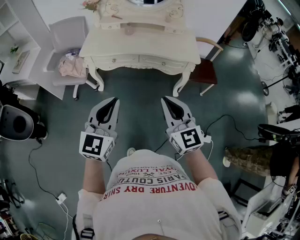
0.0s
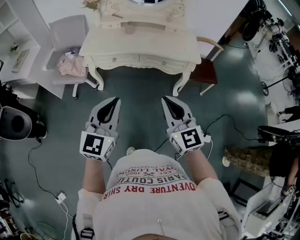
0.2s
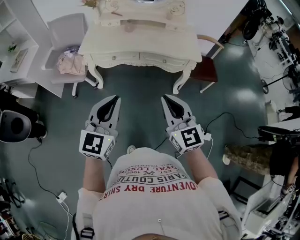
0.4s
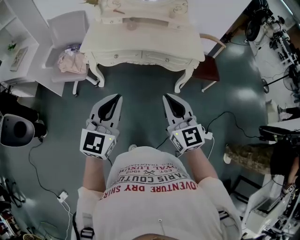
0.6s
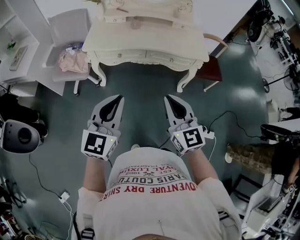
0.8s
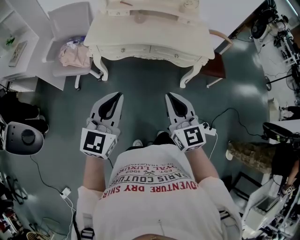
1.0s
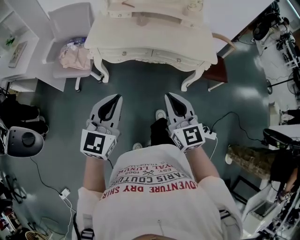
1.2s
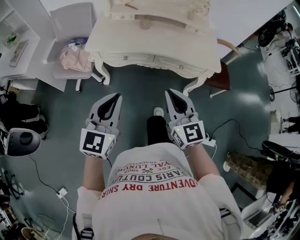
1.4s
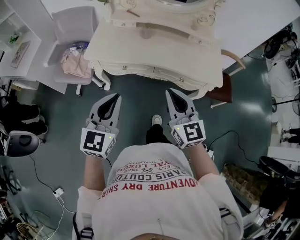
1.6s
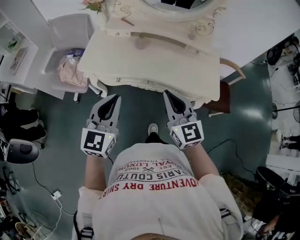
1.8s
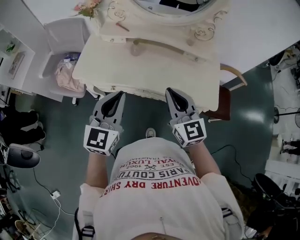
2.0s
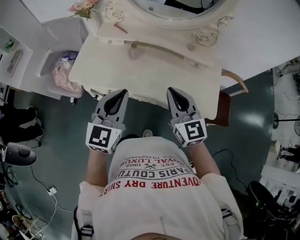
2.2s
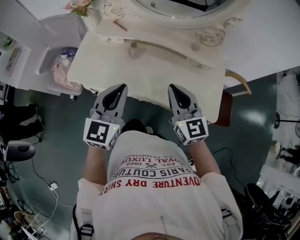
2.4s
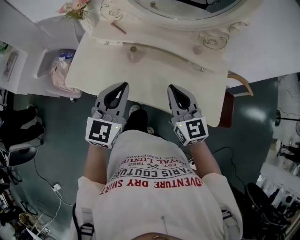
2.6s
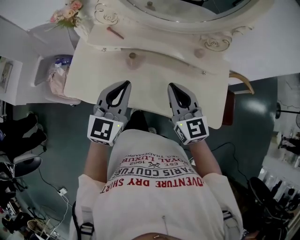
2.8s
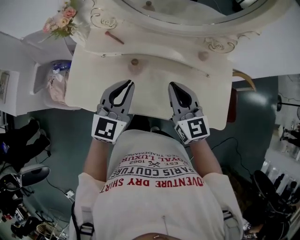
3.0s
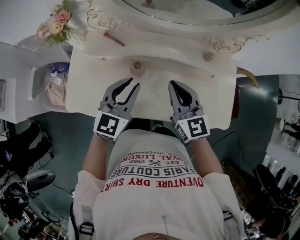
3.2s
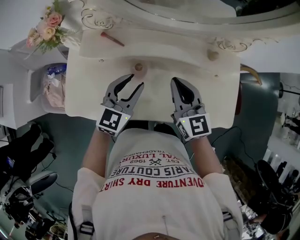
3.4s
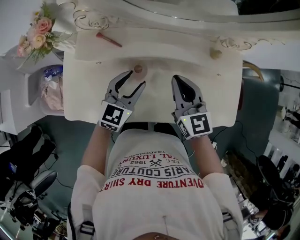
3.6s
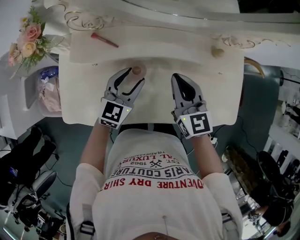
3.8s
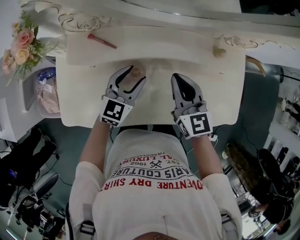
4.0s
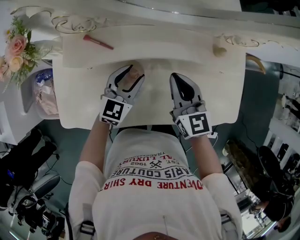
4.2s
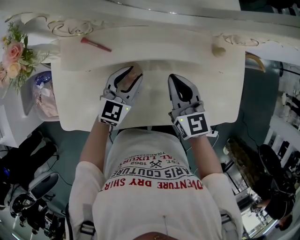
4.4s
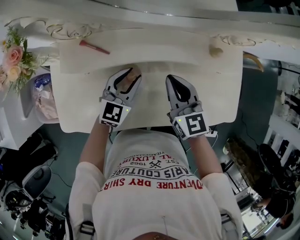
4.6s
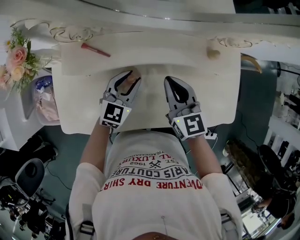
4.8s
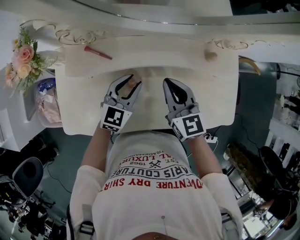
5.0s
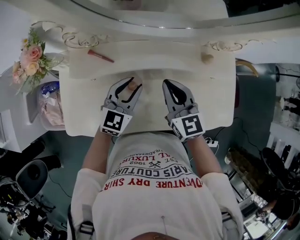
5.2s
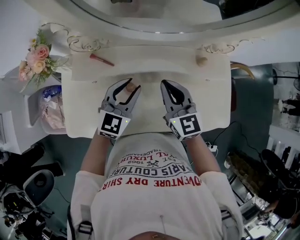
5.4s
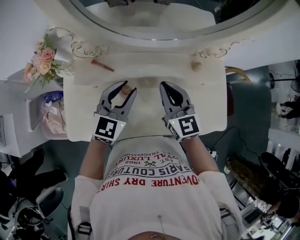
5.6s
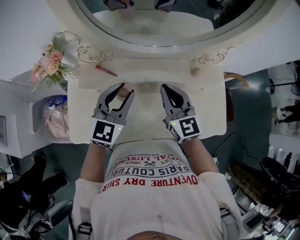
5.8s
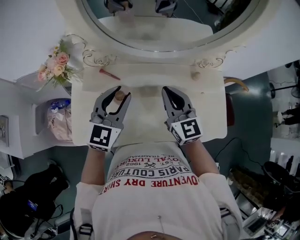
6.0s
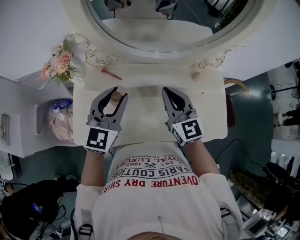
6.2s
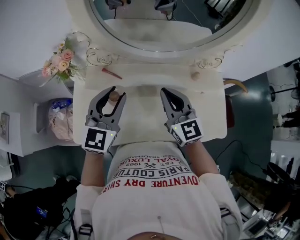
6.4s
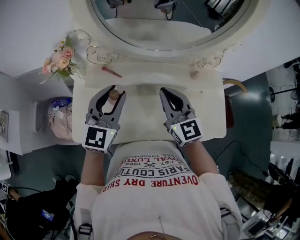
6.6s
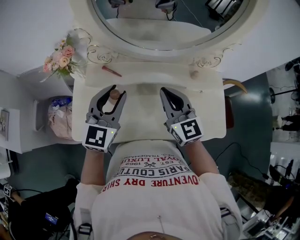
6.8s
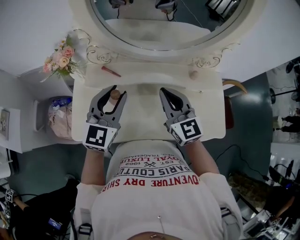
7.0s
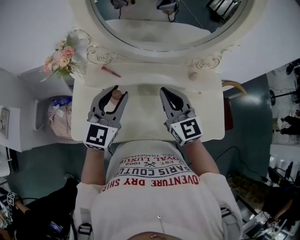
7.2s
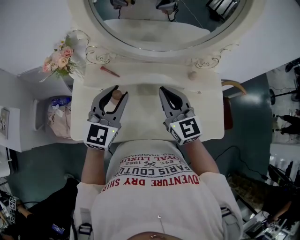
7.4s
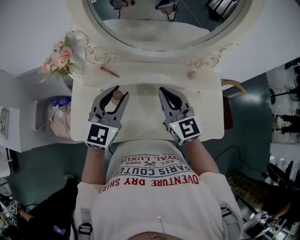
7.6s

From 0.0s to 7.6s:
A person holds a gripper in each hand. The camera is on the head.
From 0.0s to 1.6s: Both grippers travel together forward, approximately 25 cm.
From 1.6s to 3.0s: The two grippers travel together, forward, about 40 cm.
From 3.0s to 4.6s: The grippers both shift downward and forward by about 20 cm. The left gripper opens.
From 4.6s to 6.0s: The left gripper goes approximately 20 cm upward; the right gripper is displaced upward by about 15 cm.
From 6.0s to 7.6s: There are only small adjustments of the grippers.

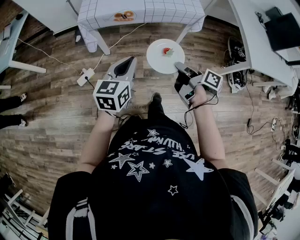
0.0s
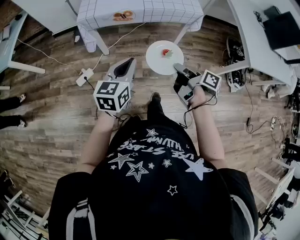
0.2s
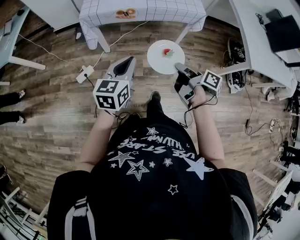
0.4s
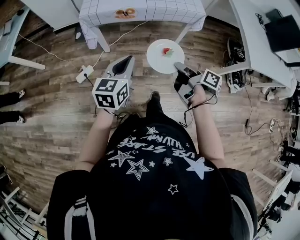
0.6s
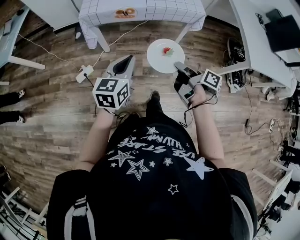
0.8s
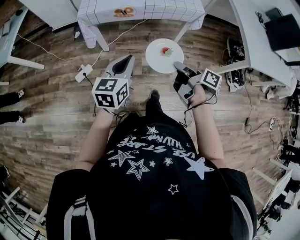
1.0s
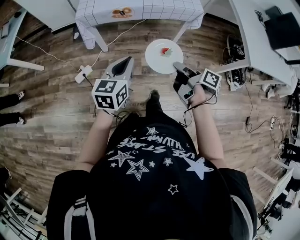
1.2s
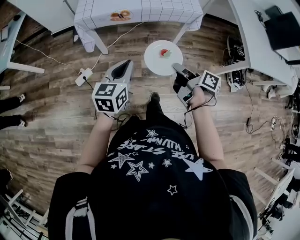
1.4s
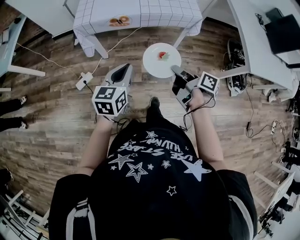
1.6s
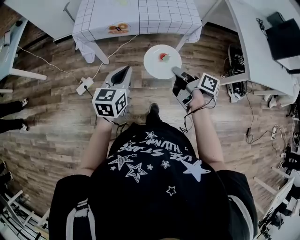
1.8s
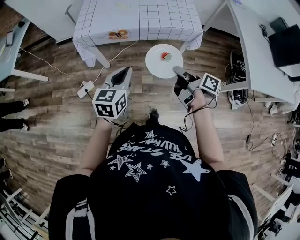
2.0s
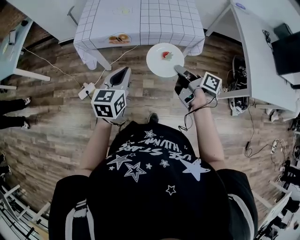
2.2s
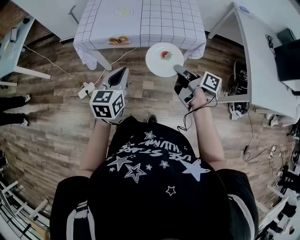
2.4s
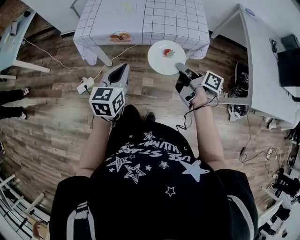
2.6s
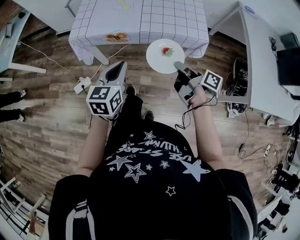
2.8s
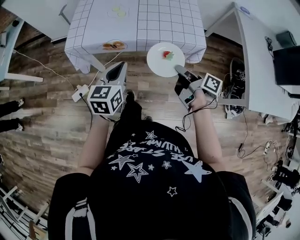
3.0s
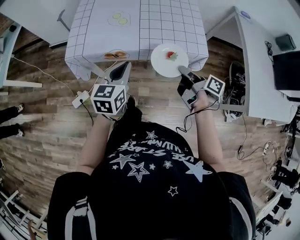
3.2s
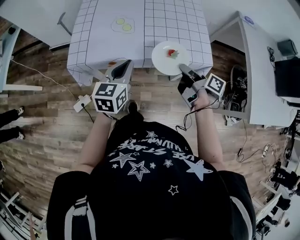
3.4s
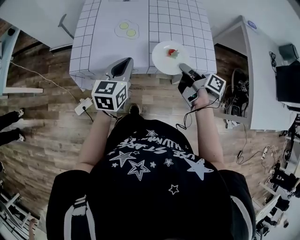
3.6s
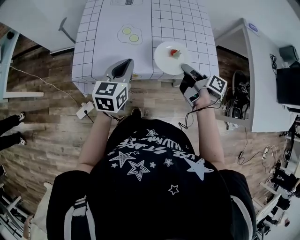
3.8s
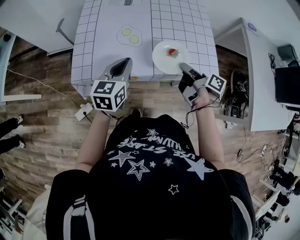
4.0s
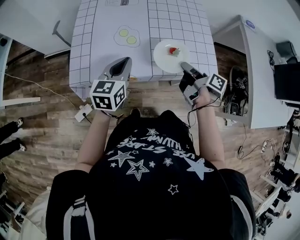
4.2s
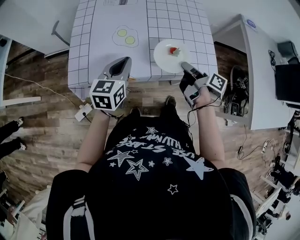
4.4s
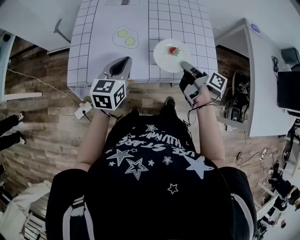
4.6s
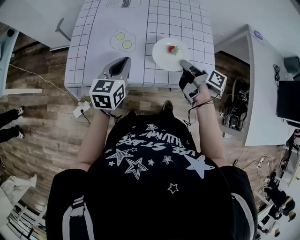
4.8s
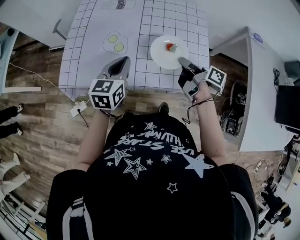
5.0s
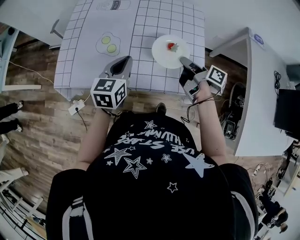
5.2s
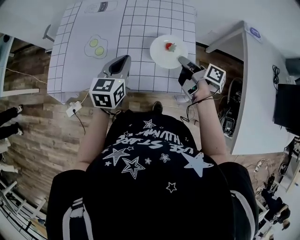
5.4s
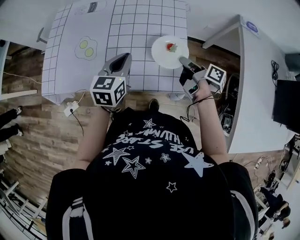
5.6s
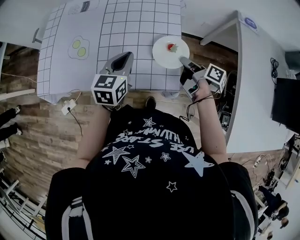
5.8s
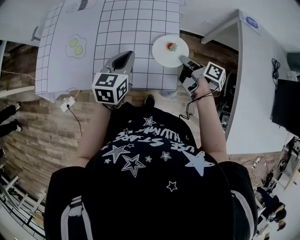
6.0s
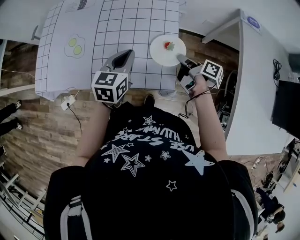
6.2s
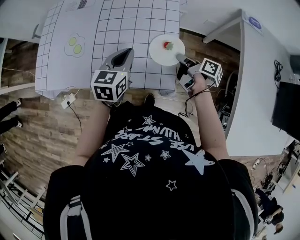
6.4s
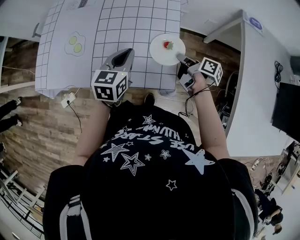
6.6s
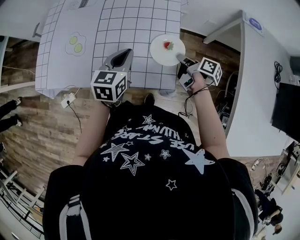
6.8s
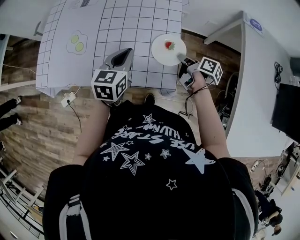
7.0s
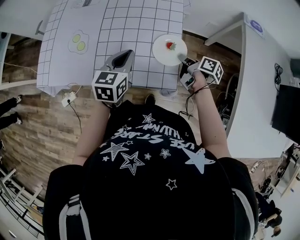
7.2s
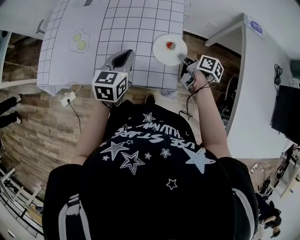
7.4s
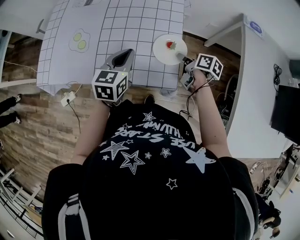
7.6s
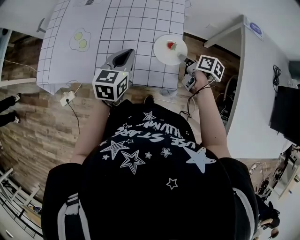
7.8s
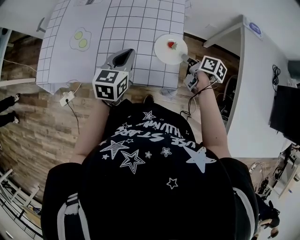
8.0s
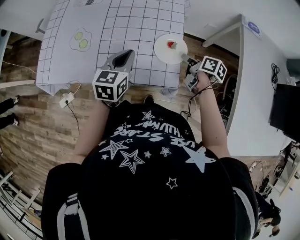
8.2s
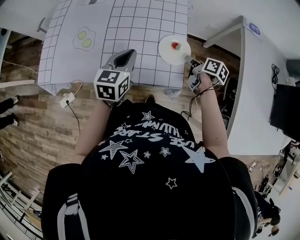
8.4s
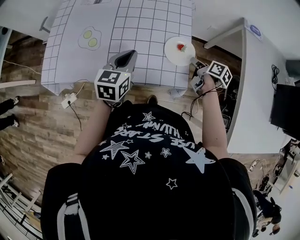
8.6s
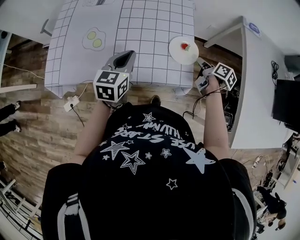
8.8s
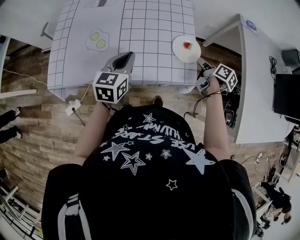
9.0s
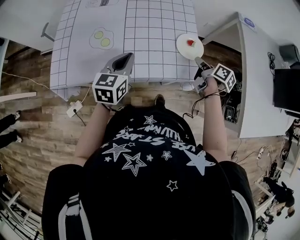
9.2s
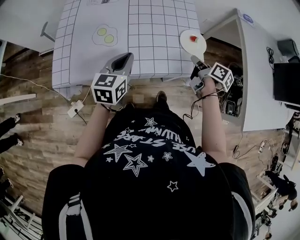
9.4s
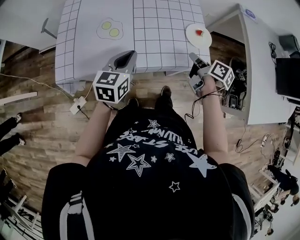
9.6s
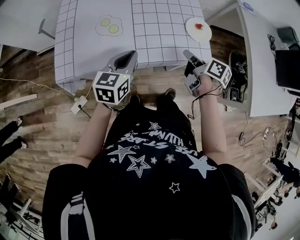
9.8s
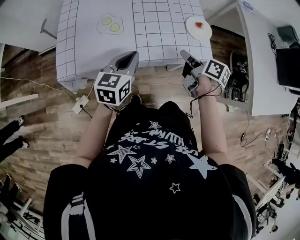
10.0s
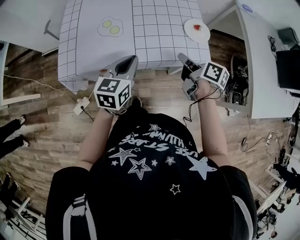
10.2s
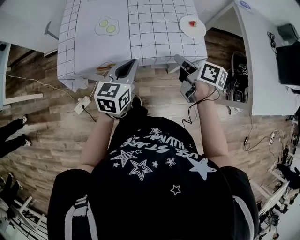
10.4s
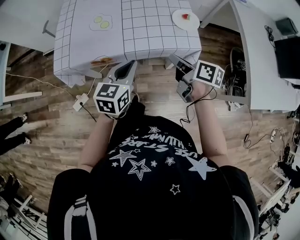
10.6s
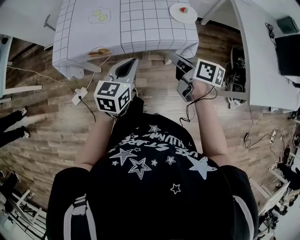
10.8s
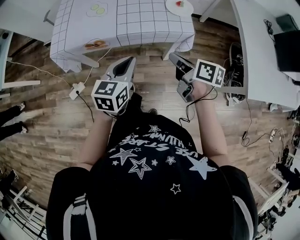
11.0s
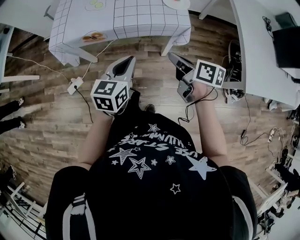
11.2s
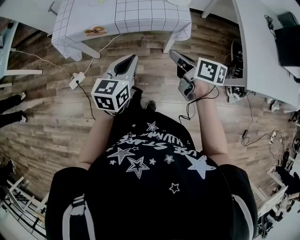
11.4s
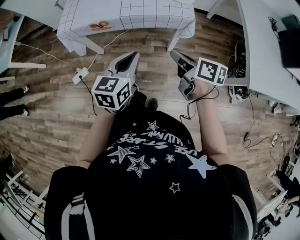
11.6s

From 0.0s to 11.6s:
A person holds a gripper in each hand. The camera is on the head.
From 1.4s to 2.8s: The left gripper ends up about 20 cm from where it was.
From 2.8s to 4.4s: The left gripper ends up about 25 cm from where it was.
From 4.4s to 5.8s: The left gripper ends up some 30 cm from where it was.
From 7.2s to 8.8s: The left gripper ends up about 10 cm from where it was.
From 8.8s to 10.2s: The left gripper moves about 15 cm.
From 10.2s to 11.6s: The left gripper changes place by approximately 25 cm.

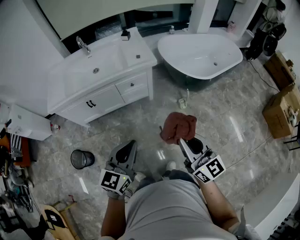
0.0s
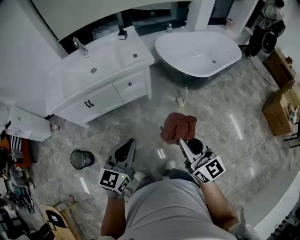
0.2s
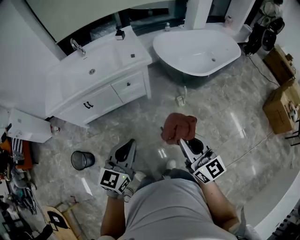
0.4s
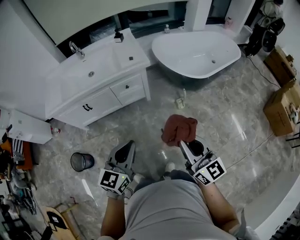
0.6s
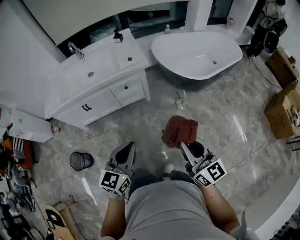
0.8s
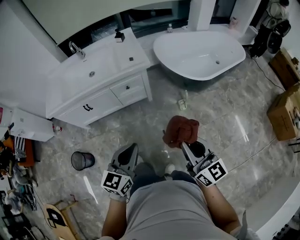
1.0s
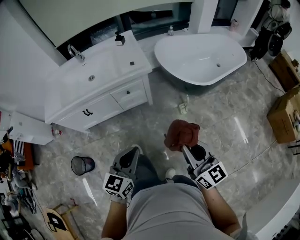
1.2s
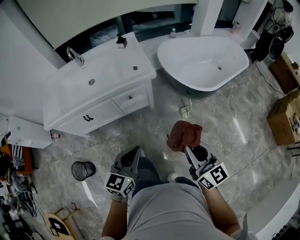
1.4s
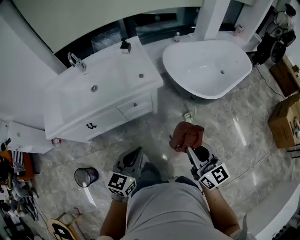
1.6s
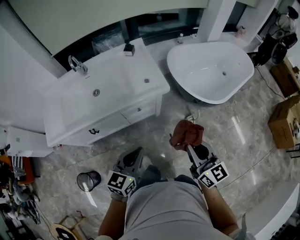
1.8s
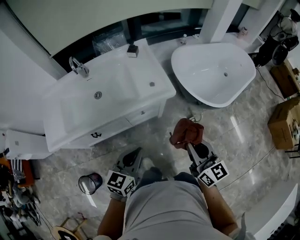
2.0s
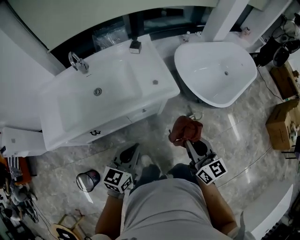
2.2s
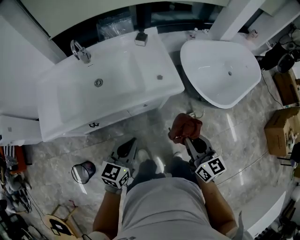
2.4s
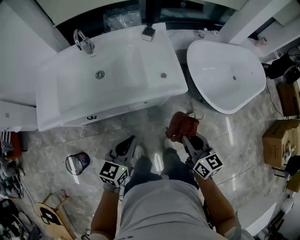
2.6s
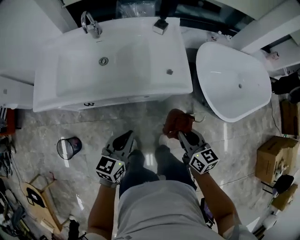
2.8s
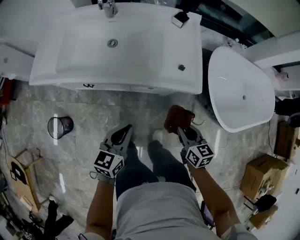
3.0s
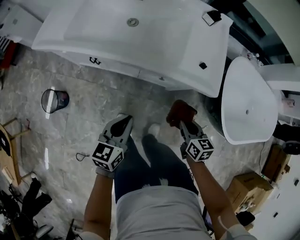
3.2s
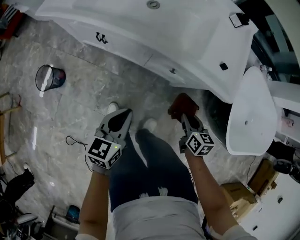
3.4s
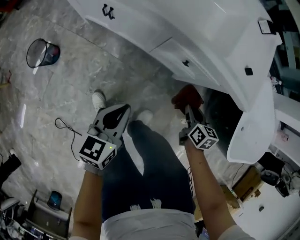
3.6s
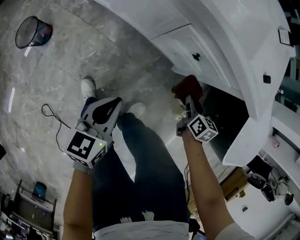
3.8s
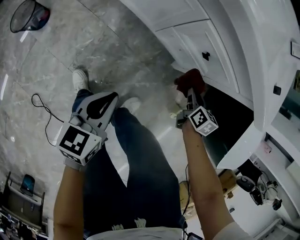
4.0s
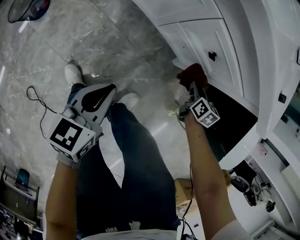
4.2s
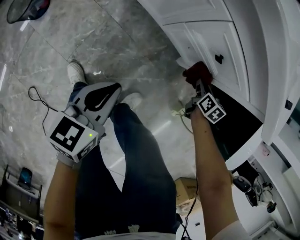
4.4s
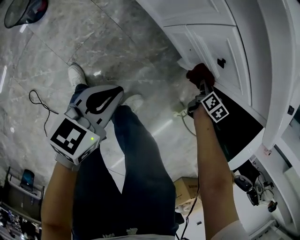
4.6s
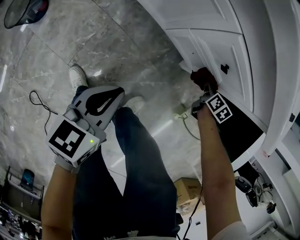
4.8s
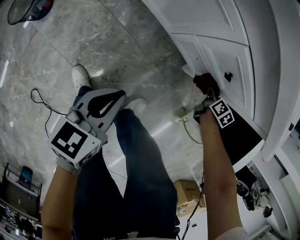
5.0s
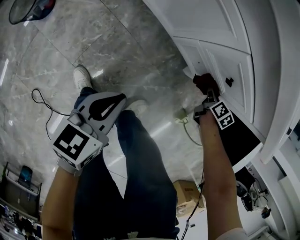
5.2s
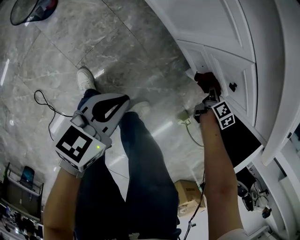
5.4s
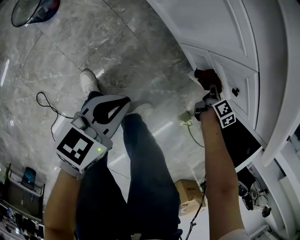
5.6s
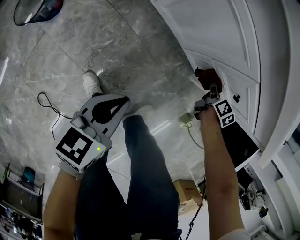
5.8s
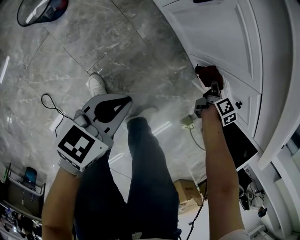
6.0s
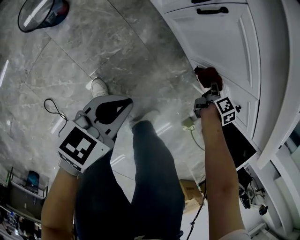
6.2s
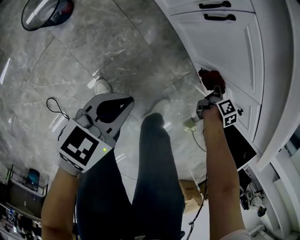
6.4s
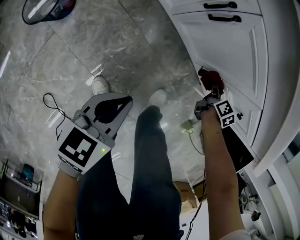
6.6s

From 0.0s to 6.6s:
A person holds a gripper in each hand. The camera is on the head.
From 0.0s to 1.6s: The grippers both shift forward by some 20 cm.
From 1.6s to 3.2s: The left gripper changes place by about 25 cm, and swivels some 40 degrees, while the right gripper is displaced downward by approximately 25 cm, and tilts its fingers about 40 degrees downward.
From 3.2s to 5.0s: The right gripper is displaced downward and forward by some 40 cm. Meanwhile the left gripper travels downward by approximately 30 cm, and changes its angle by approximately 20 degrees.
From 5.0s to 6.6s: Both grippers move to the left, approximately 20 cm.
